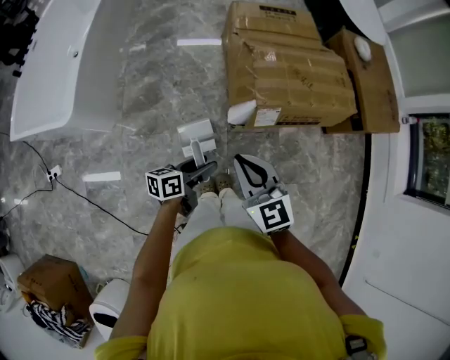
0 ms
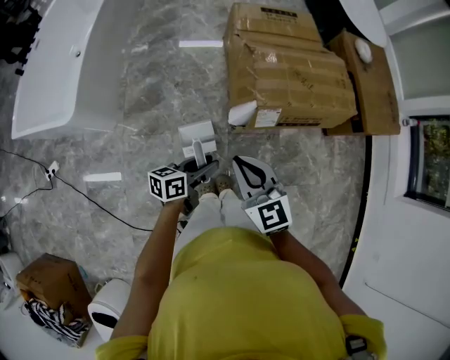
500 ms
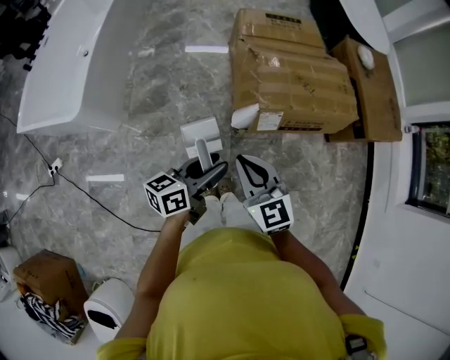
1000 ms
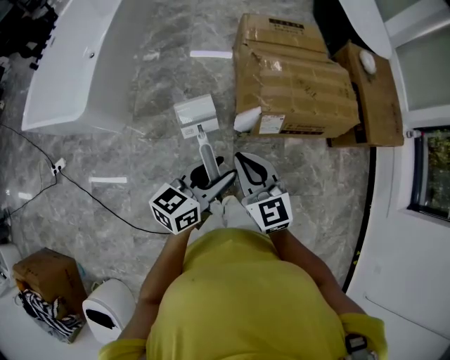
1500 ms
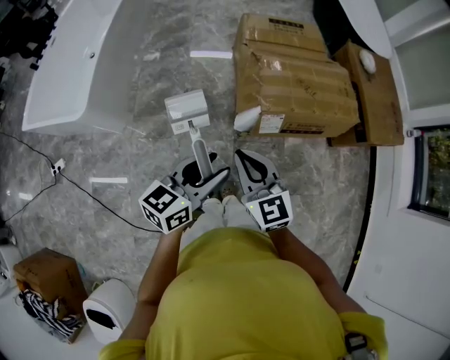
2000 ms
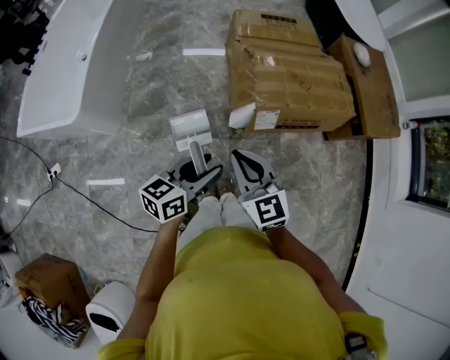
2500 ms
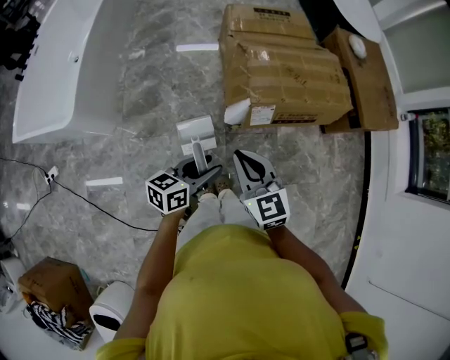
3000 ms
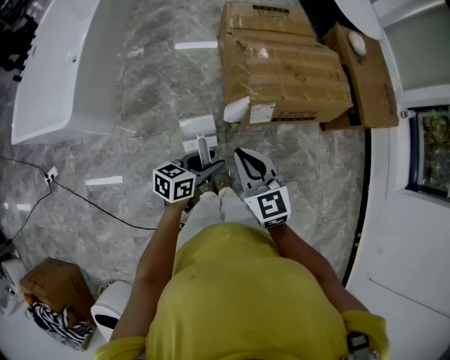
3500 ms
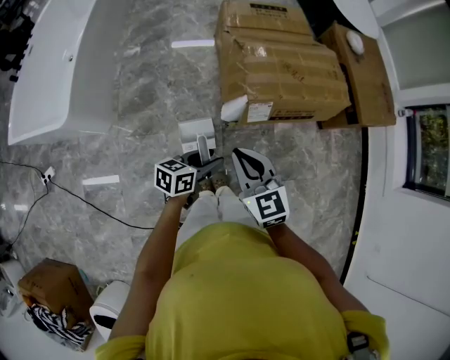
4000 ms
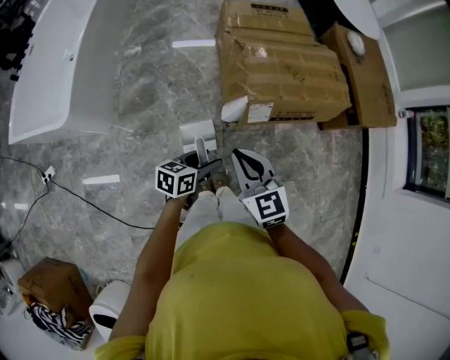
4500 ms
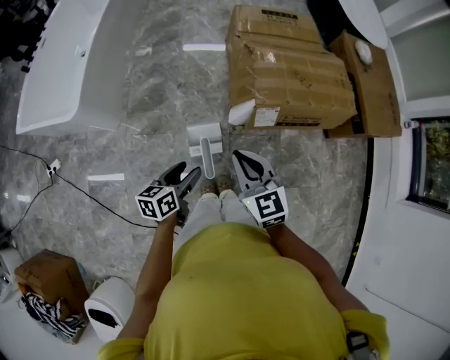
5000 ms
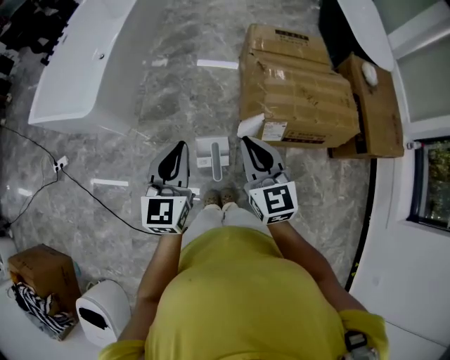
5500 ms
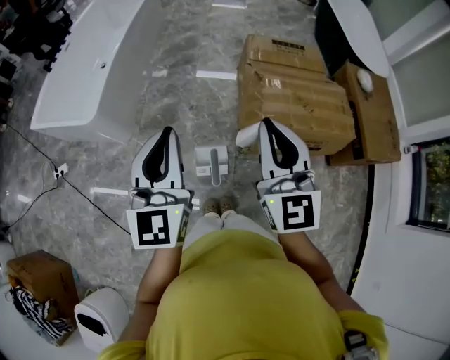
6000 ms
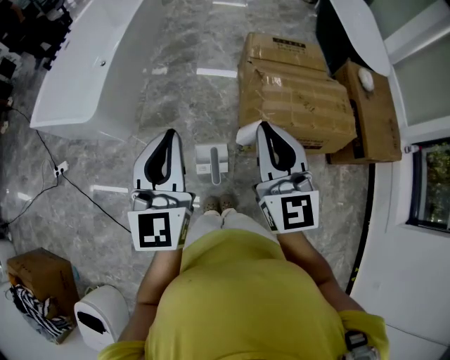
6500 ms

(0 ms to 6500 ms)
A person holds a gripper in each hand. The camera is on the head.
0 ms - 2000 ms: The left gripper heads upward, covering roughly 20 cm, and turns by about 30 degrees.
2000 ms - 4500 ms: The right gripper moves about 5 cm. The left gripper travels downward by some 20 cm, and turns by roughly 30 degrees.
4500 ms - 6500 ms: The left gripper shifts approximately 35 cm upward, tips its fingers upward by some 30 degrees, and closes up; the right gripper is displaced upward by about 20 cm, and turns by about 30 degrees.

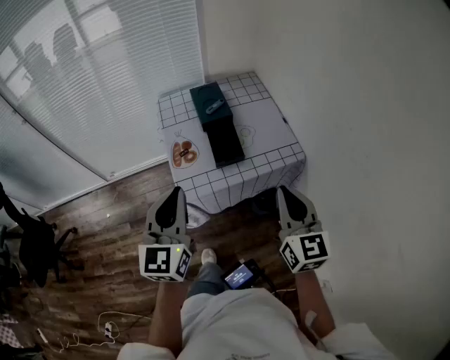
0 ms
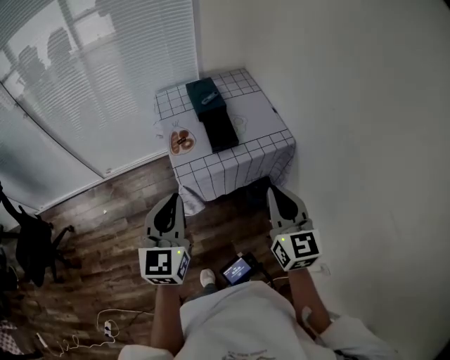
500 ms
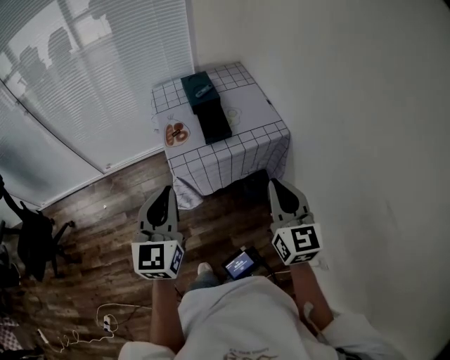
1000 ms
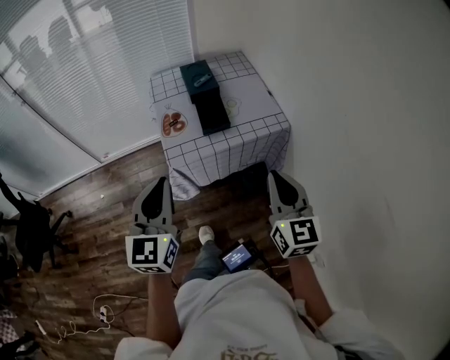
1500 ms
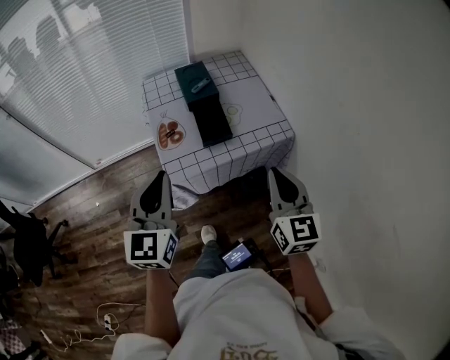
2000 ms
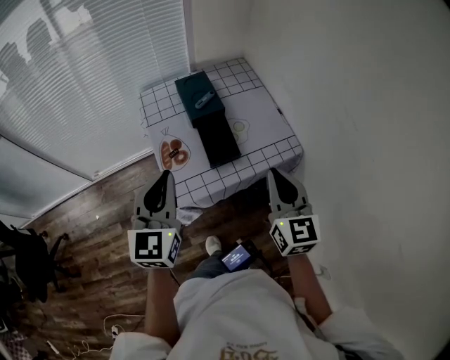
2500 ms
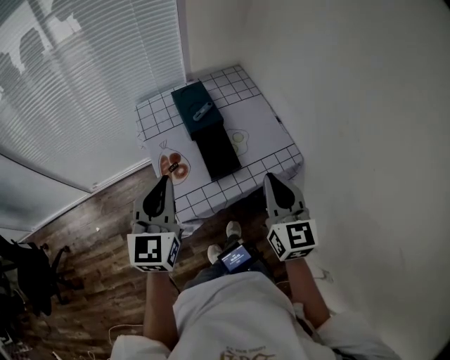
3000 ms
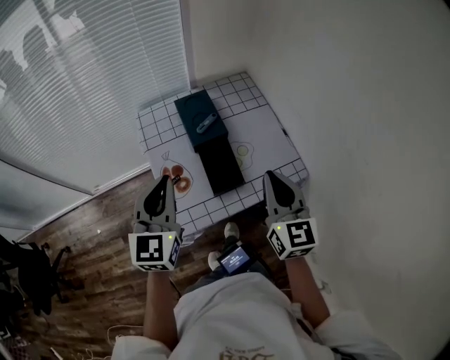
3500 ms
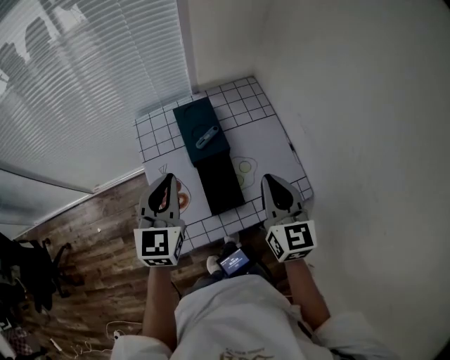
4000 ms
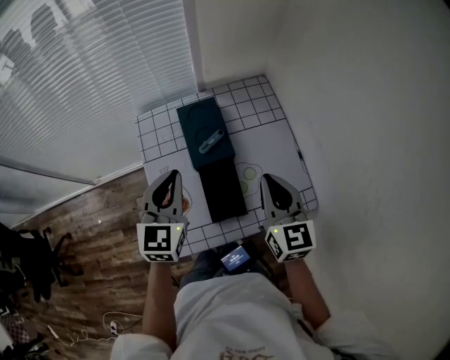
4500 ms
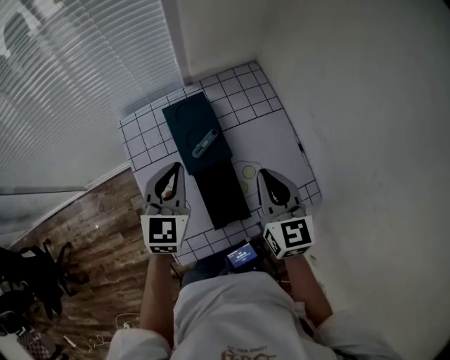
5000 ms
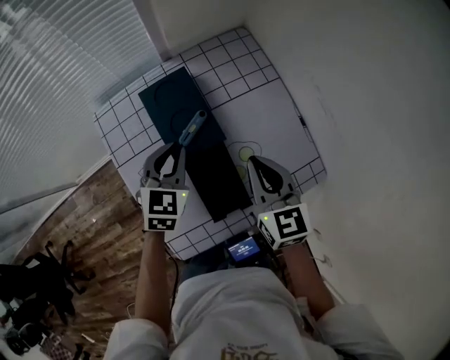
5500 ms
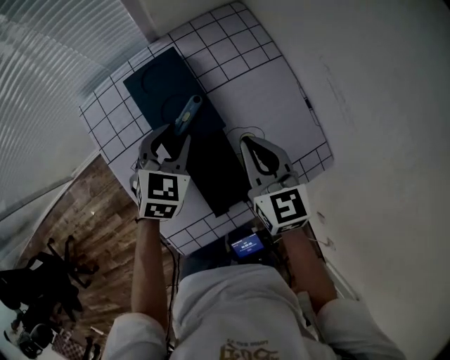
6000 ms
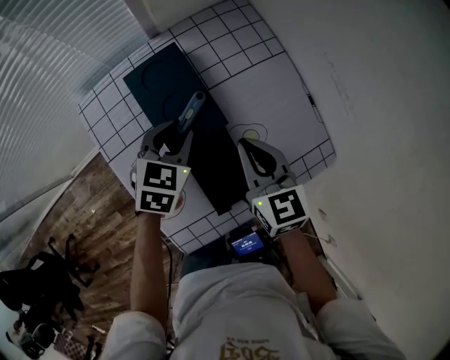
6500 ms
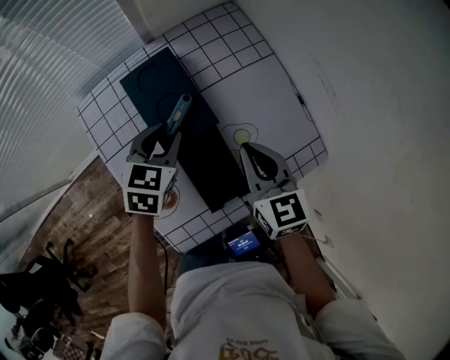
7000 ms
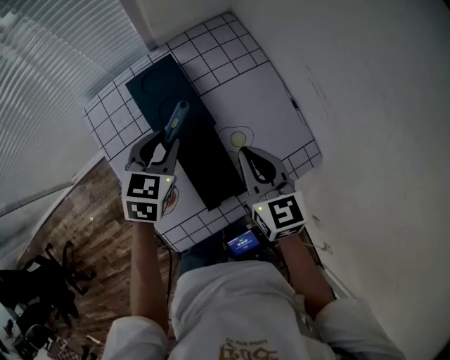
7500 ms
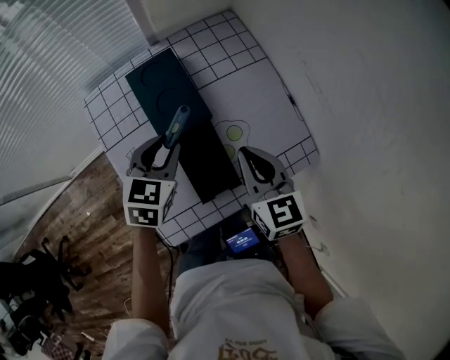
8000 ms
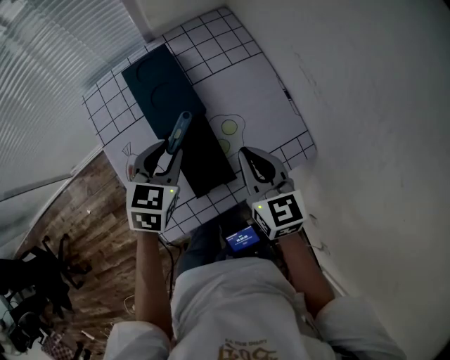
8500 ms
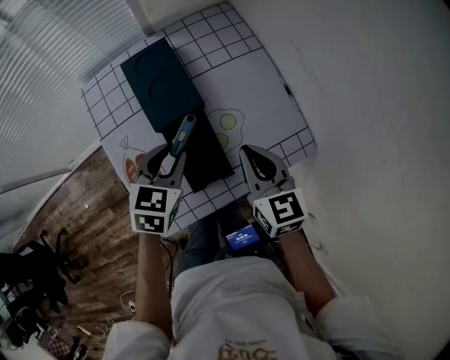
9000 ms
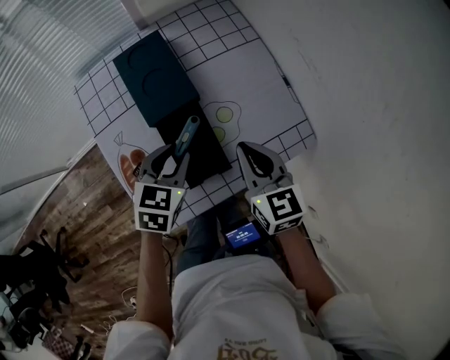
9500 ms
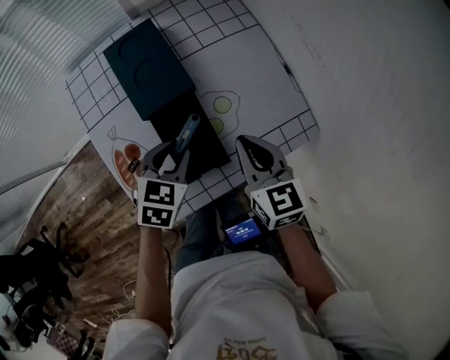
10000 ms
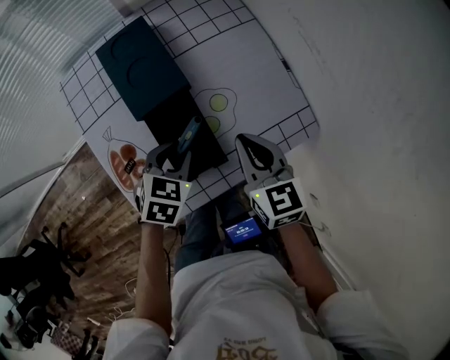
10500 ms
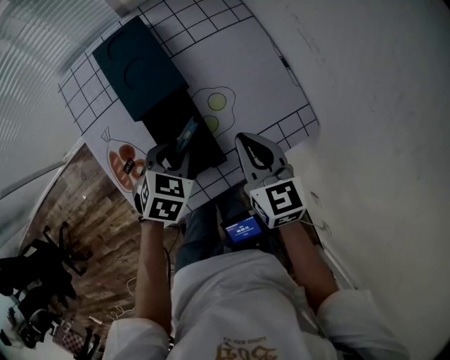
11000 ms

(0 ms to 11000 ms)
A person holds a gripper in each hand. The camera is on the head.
0 ms - 2000 ms: The right gripper moves some 10 cm backward and comes back. The left gripper goes backward and returns, about 10 cm each way.
2000 ms - 3500 ms: The grippers both shift forward by about 20 cm.
3500 ms - 5500 ms: Both grippers move forward and downward, roughly 25 cm. The left gripper turns by approximately 30 degrees.
5500 ms - 7500 ms: The left gripper opens up.
7500 ms - 9000 ms: The left gripper heads backward, covering some 10 cm, while the right gripper shifts by approximately 5 cm.
9000 ms - 11000 ms: The left gripper goes about 10 cm downward; the right gripper moves some 5 cm.

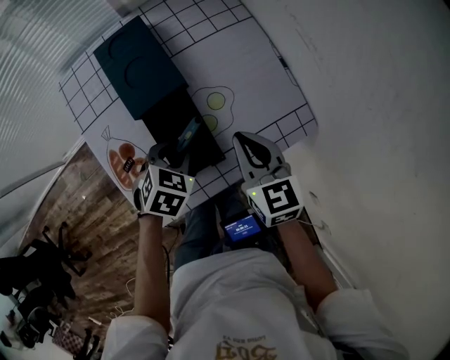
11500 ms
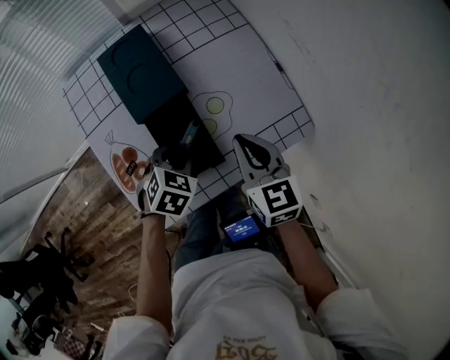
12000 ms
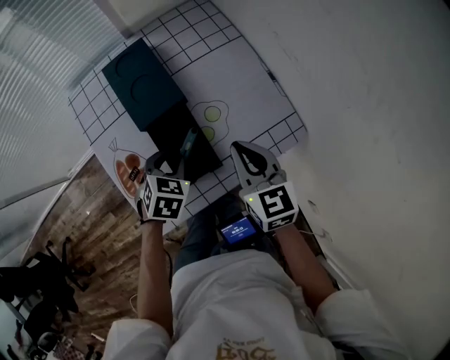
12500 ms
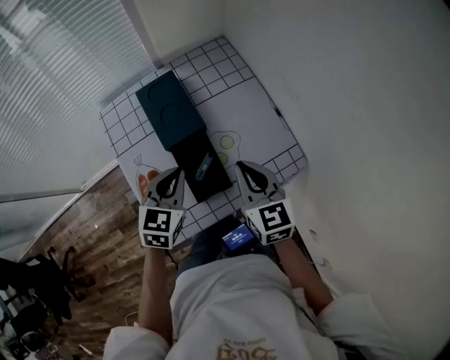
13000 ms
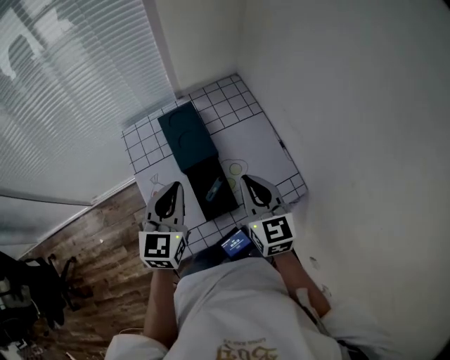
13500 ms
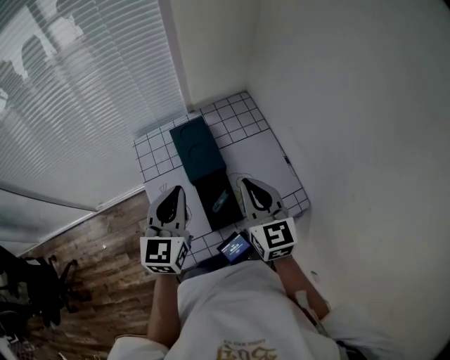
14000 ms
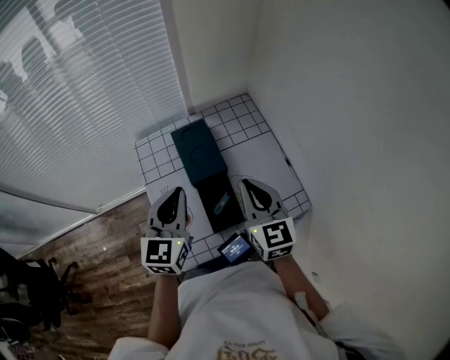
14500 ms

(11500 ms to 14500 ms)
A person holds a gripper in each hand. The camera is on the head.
11500 ms - 13000 ms: The left gripper shifts roughly 15 cm upward, turns by roughly 30 degrees, and closes its fingers. The right gripper moves upward, about 10 cm.
13000 ms - 14500 ms: Both grippers move upward, about 10 cm. The left gripper changes its angle by about 30 degrees.

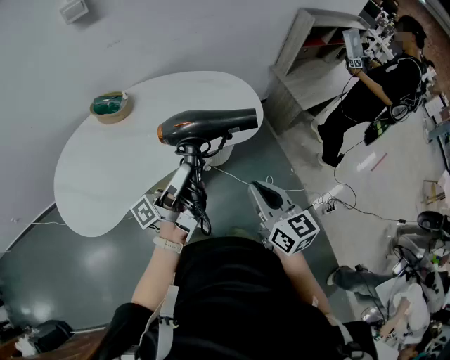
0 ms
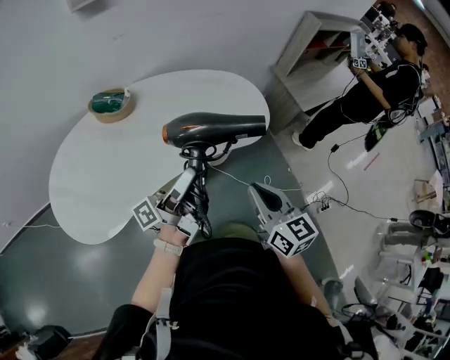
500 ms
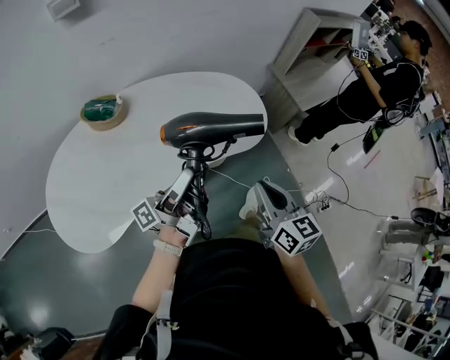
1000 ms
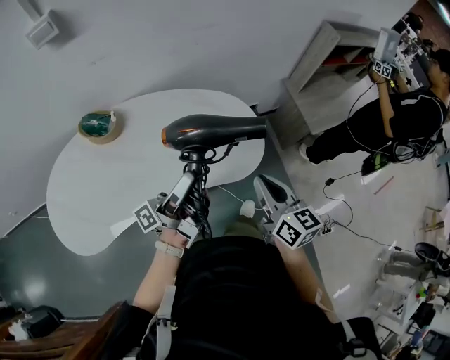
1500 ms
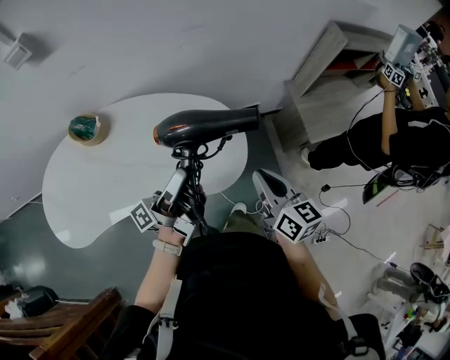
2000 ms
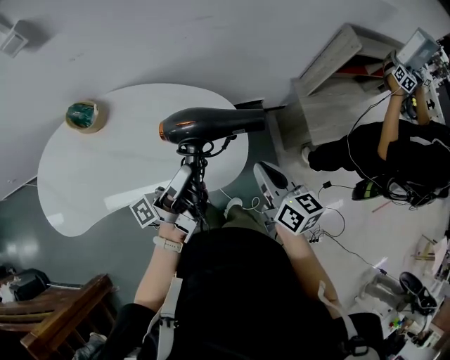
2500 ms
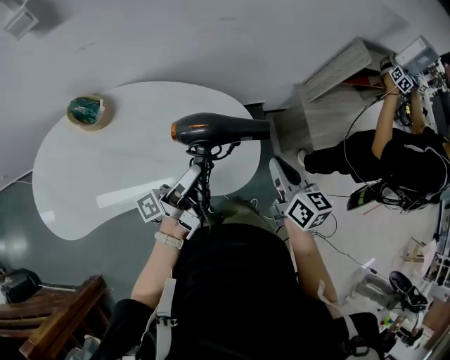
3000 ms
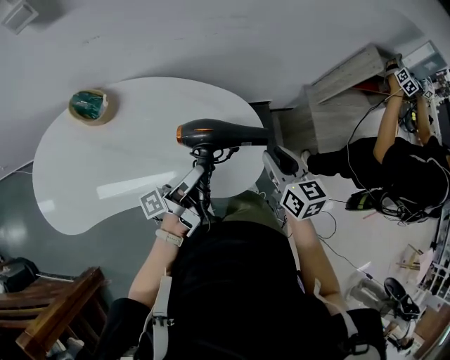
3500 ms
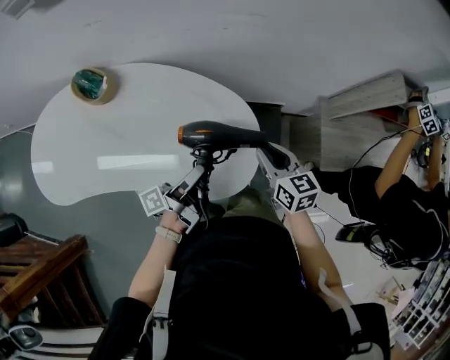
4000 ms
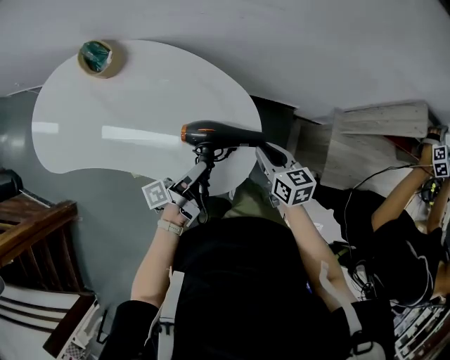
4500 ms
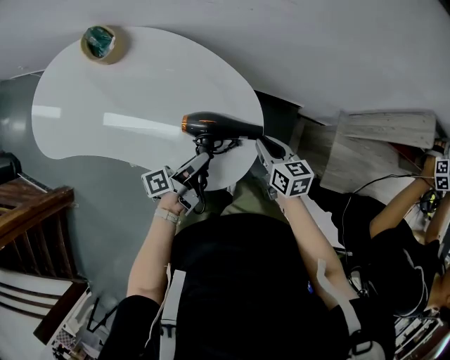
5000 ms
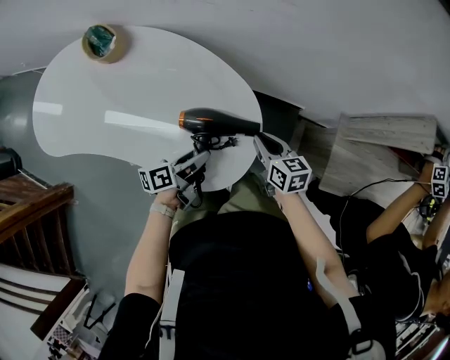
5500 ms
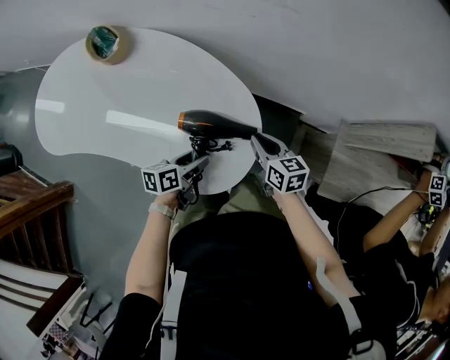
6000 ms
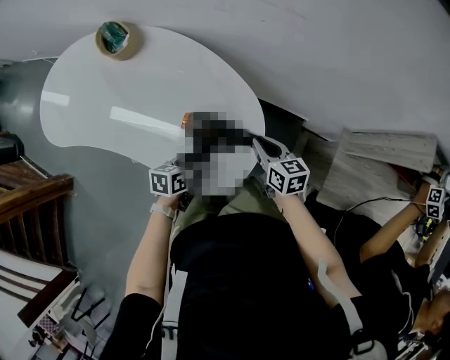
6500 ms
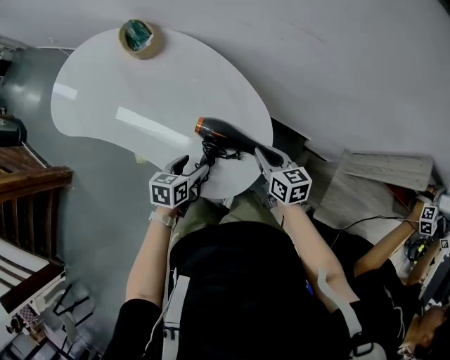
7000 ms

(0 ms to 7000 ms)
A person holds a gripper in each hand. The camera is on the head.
0 ms - 2000 ms: The two grippers go about 30 cm forward and to the right.
2000 ms - 3500 ms: The right gripper shifts some 15 cm forward and downward, and opens its fingers, while the left gripper goes roughly 10 cm downward.
3500 ms - 5000 ms: The left gripper shifts about 15 cm downward and to the right, and rotates approximately 30 degrees; the right gripper is displaced downward and forward by about 20 cm, and turns by about 30 degrees.
5000 ms - 7000 ms: The left gripper ends up approximately 5 cm from where it was, and tips its fingers downward by roughly 30 degrees. The right gripper ends up roughly 5 cm from where it was.
